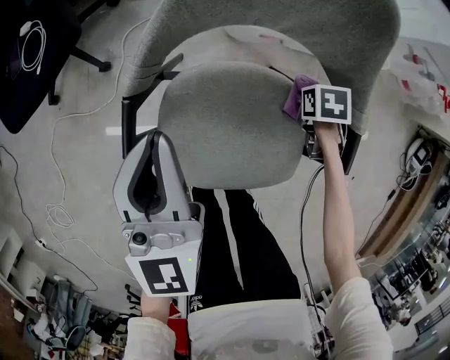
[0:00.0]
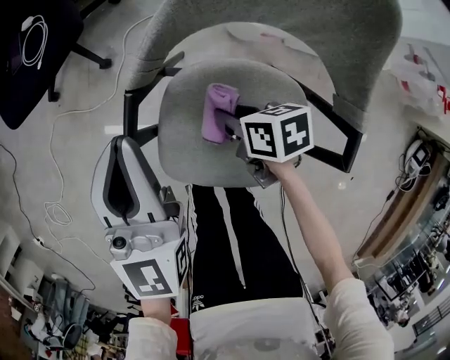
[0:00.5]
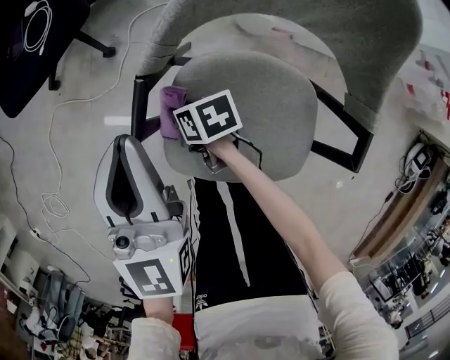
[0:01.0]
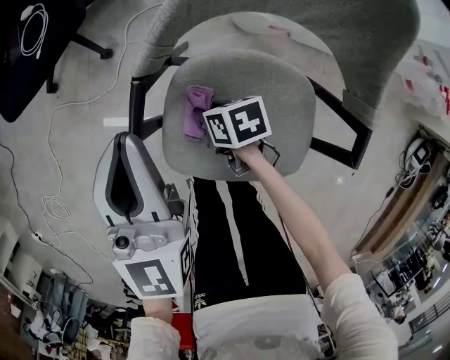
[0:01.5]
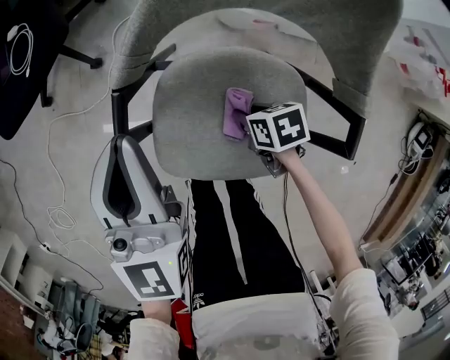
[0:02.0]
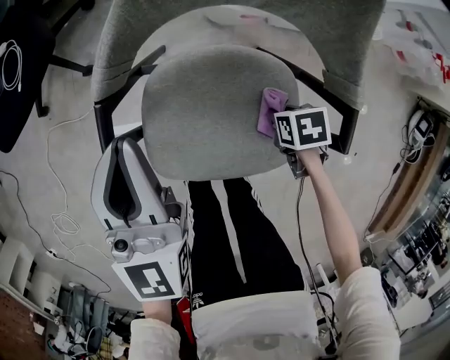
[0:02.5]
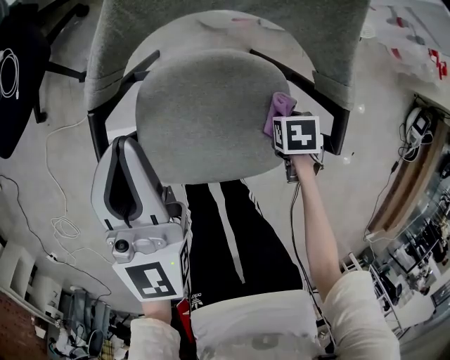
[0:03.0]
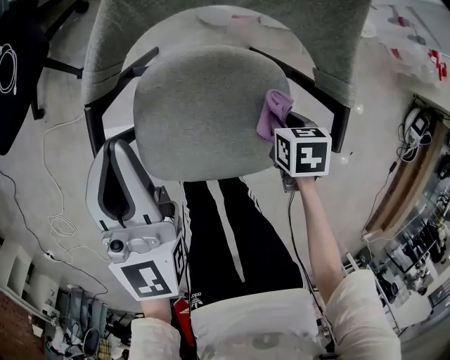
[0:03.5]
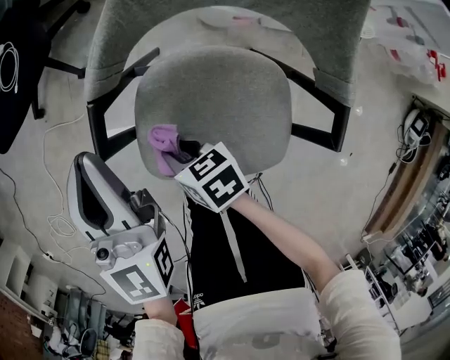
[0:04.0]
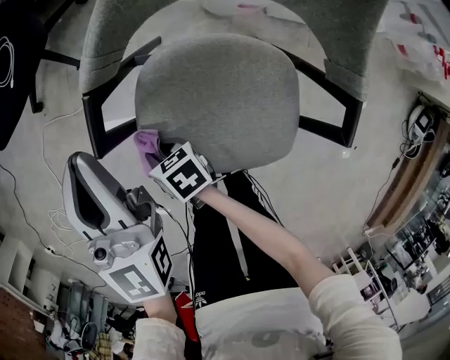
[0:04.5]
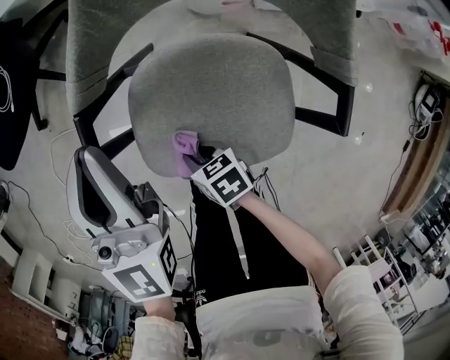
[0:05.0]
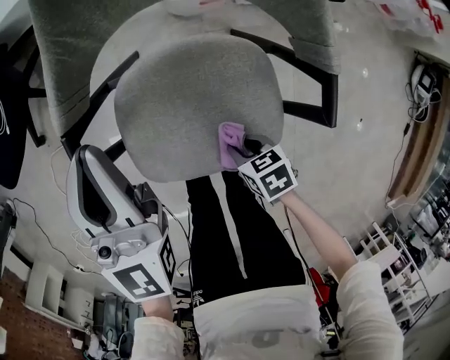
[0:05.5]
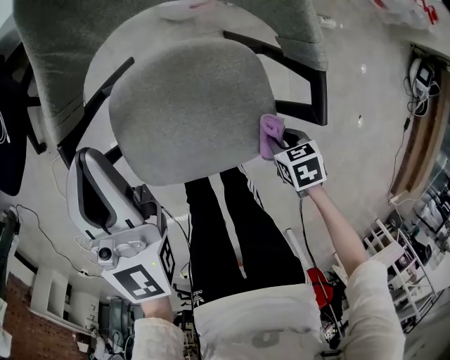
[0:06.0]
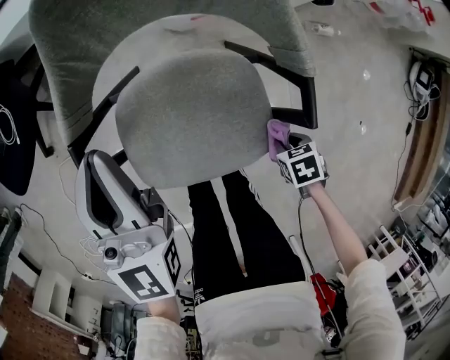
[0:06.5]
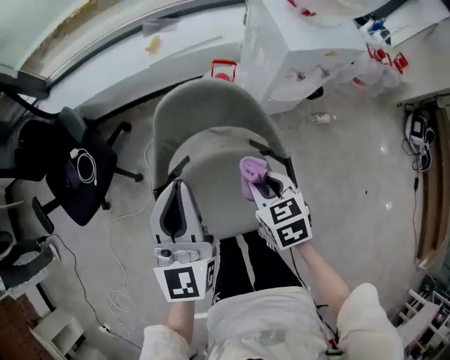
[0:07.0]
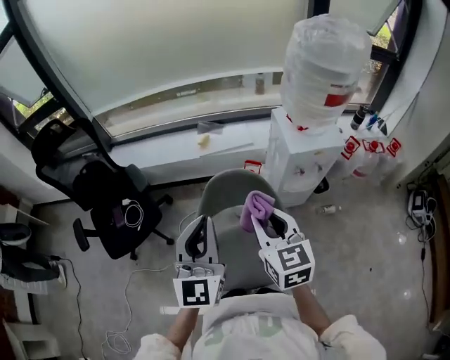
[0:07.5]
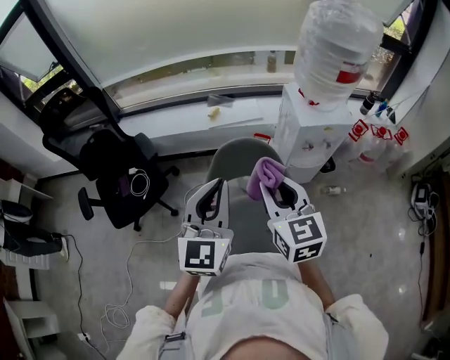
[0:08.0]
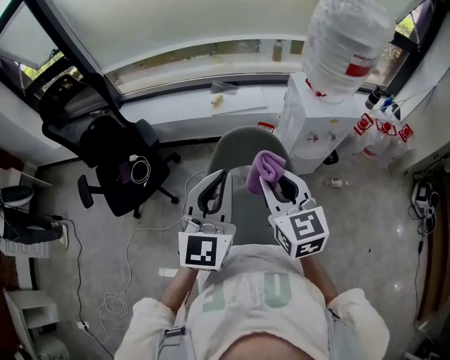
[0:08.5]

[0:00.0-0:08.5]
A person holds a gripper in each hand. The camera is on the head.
0:00.0 to 0:02.0: The right gripper swivels about 30 degrees.
0:02.0 to 0:04.0: The right gripper shifts by approximately 15 cm.
0:04.0 to 0:06.5: The left gripper moves some 10 cm. The right gripper moves about 35 cm, and tips its fingers downward by some 40 degrees.
0:06.5 to 0:08.5: The right gripper is displaced upward by roughly 60 cm, and angles its fingers upward, by some 70 degrees; the left gripper moves upward, approximately 35 cm.

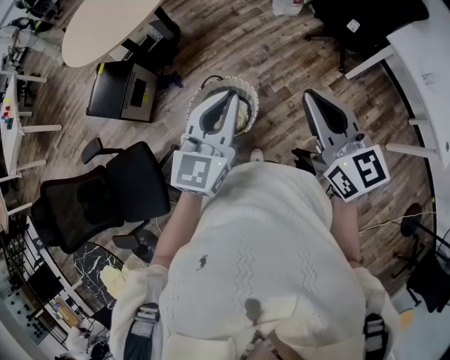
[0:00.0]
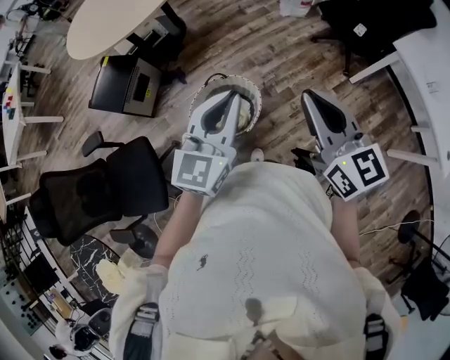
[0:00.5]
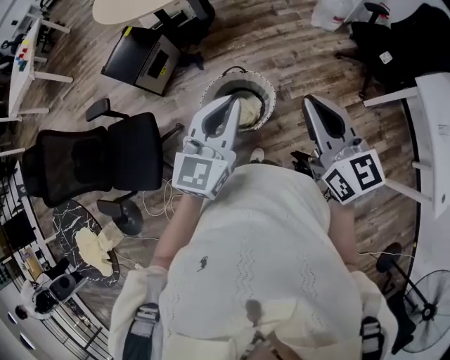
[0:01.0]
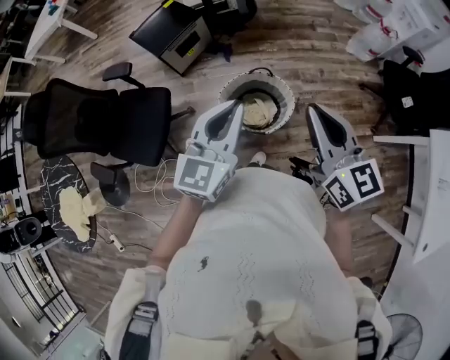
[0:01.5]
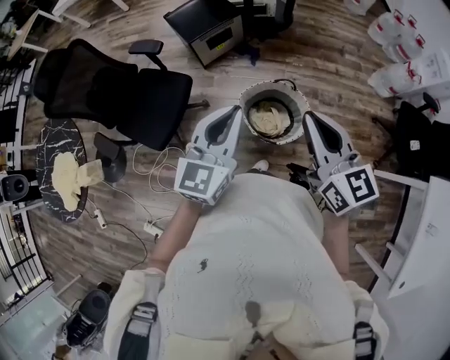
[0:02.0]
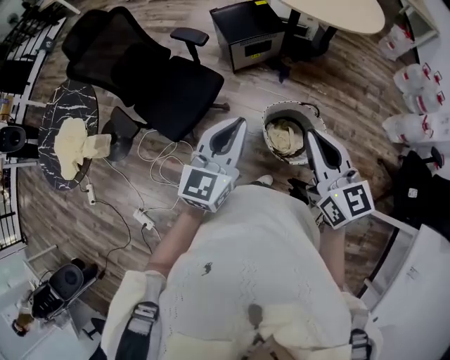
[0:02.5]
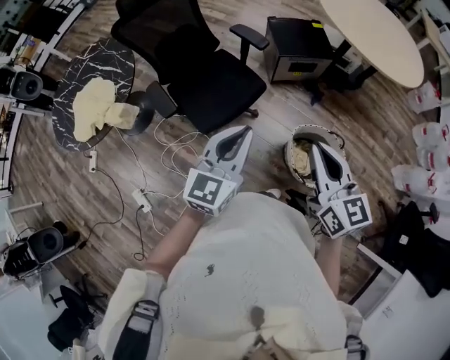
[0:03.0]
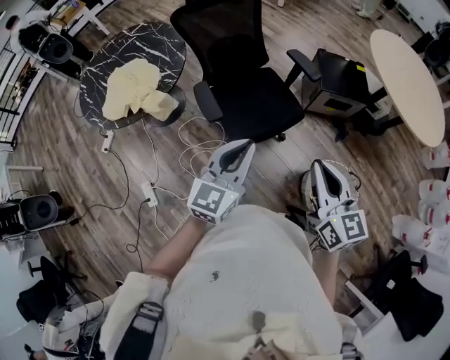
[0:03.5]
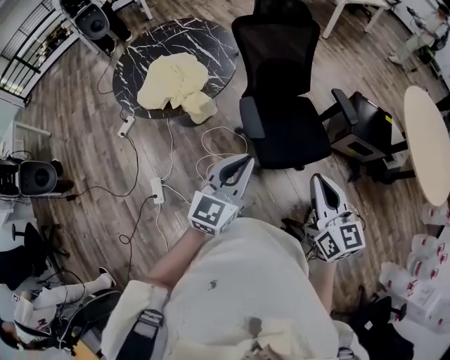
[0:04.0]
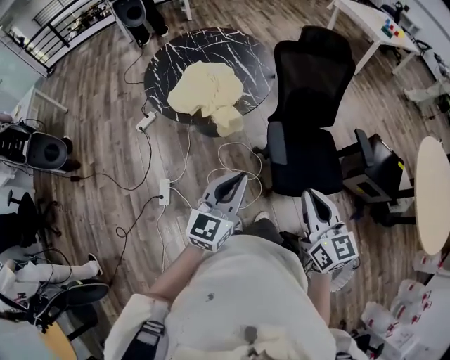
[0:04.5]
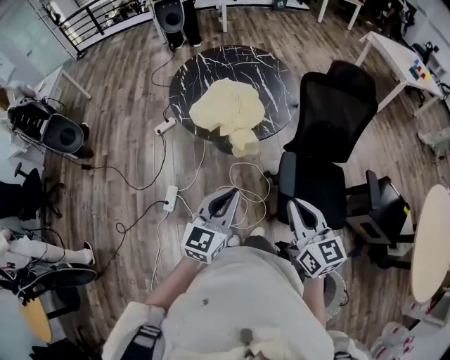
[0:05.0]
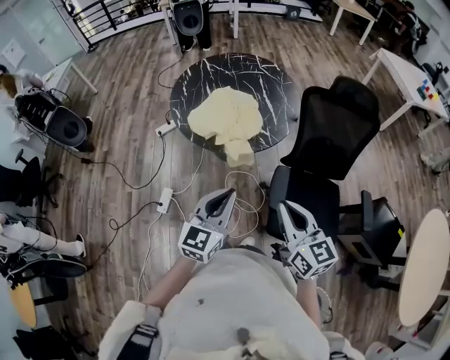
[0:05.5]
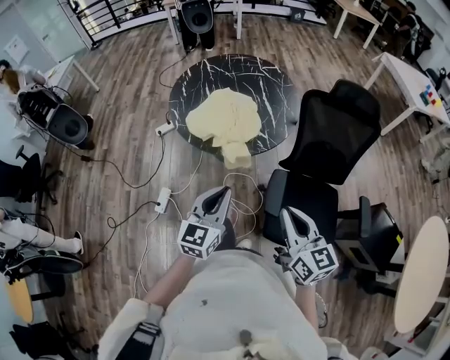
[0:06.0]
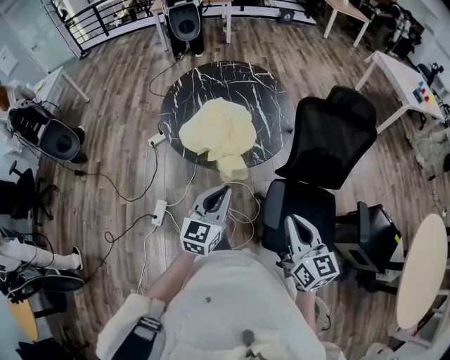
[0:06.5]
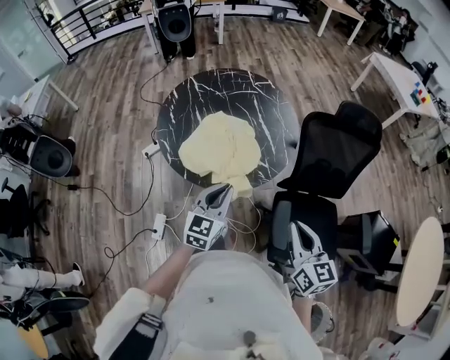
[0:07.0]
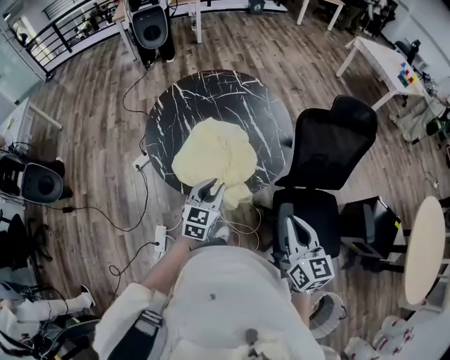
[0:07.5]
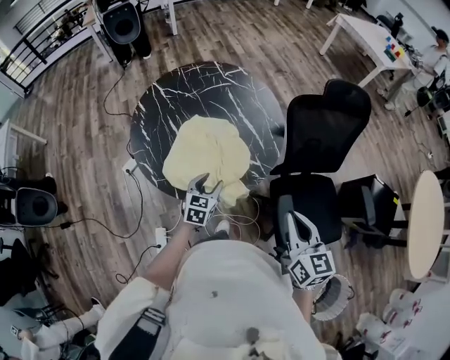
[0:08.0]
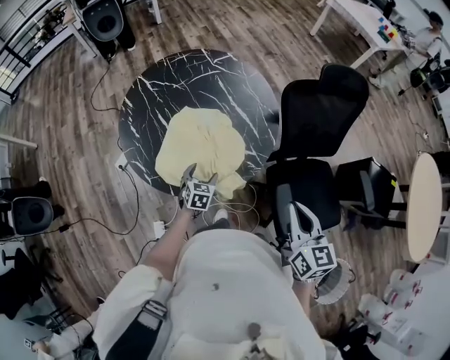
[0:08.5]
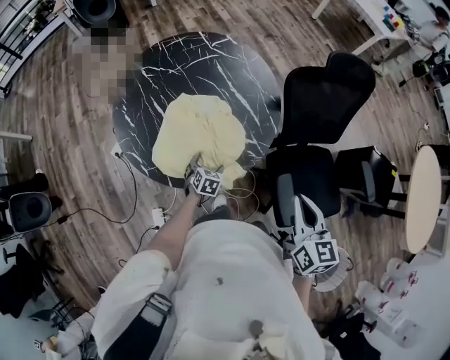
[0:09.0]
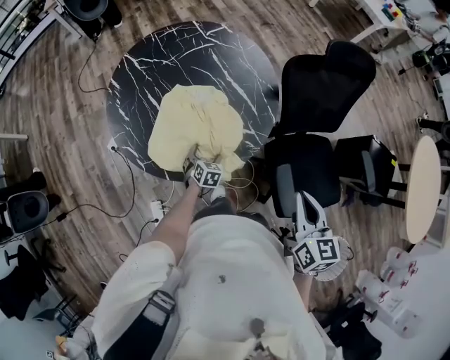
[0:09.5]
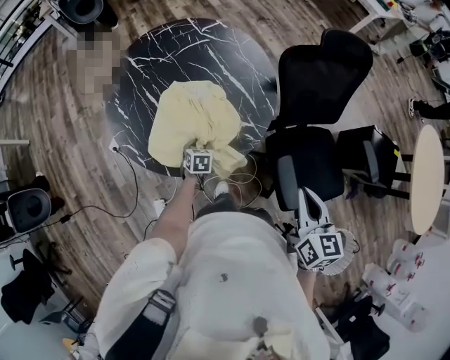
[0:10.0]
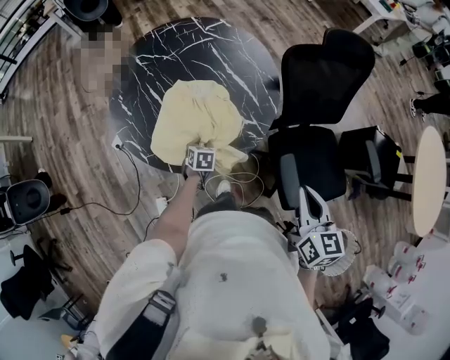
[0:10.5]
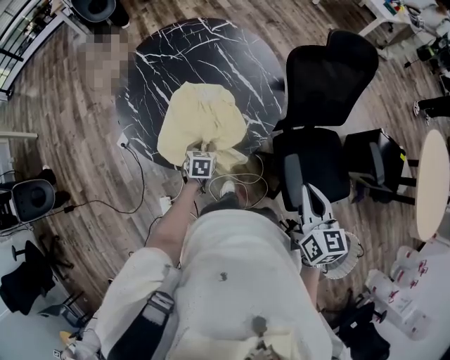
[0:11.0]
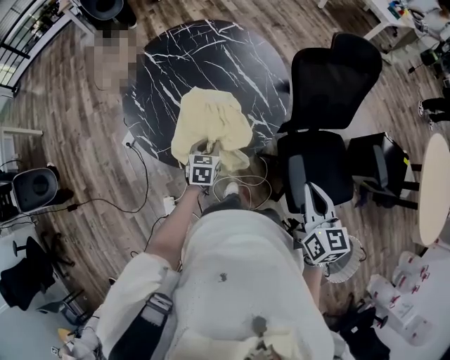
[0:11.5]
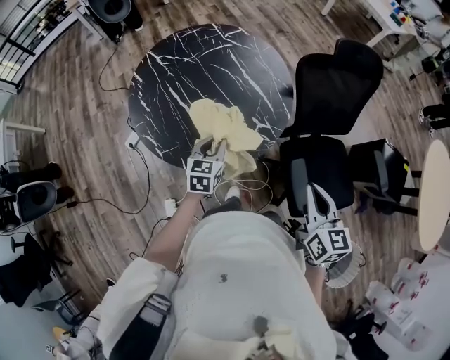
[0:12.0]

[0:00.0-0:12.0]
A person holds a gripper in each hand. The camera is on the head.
0:00.0 to 0:02.0: The right gripper changes place by some 25 cm, and swivels about 40 degrees. Meanwhile the left gripper changes place by some 25 cm, and turns by roughly 40 degrees.
0:02.0 to 0:04.0: Both grippers are carried some 70 cm. The left gripper rotates about 50 degrees. Meanwhile the right gripper turns by approximately 40 degrees.
0:04.0 to 0:06.0: The left gripper shifts by roughly 20 cm, and swivels about 40 degrees. The right gripper changes place by some 25 cm, and changes its angle by roughly 30 degrees.
0:06.0 to 0:08.0: The right gripper travels forward and to the left by about 30 cm, and rotates about 30 degrees. The left gripper is displaced forward and downward by about 50 cm, swivels some 30 degrees, and opens up.
0:08.0 to 0:10.0: The right gripper changes place by approximately 5 cm; the left gripper is displaced downward and forward by about 20 cm, swivels about 20 degrees, and opens, then closes again.
0:10.0 to 0:12.0: The left gripper is displaced upward by some 20 cm, and turns by roughly 30 degrees.

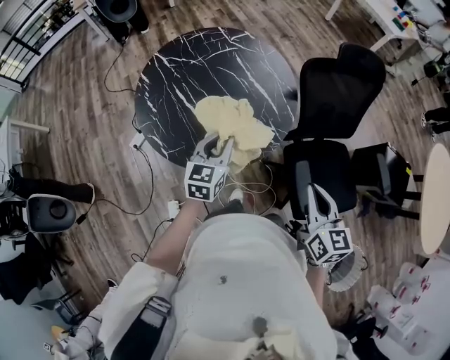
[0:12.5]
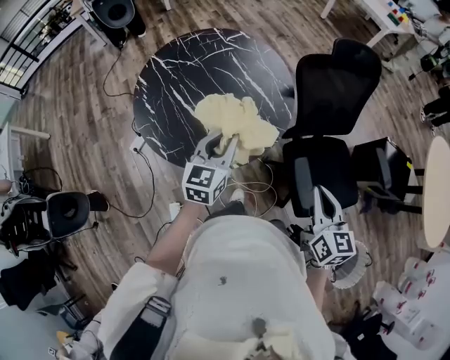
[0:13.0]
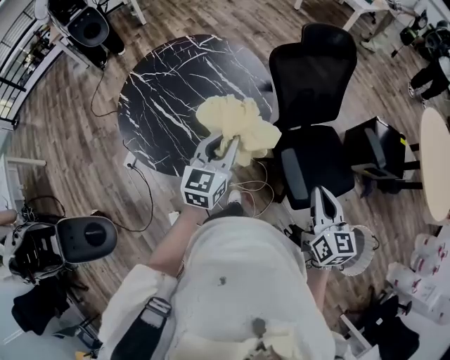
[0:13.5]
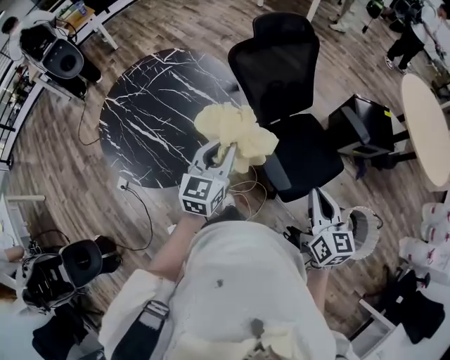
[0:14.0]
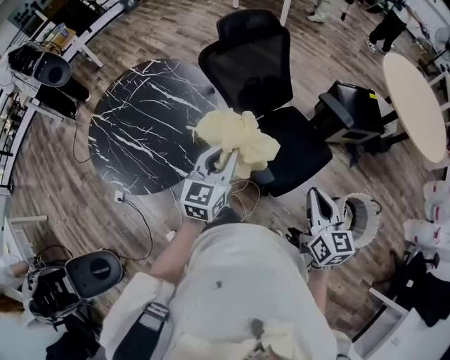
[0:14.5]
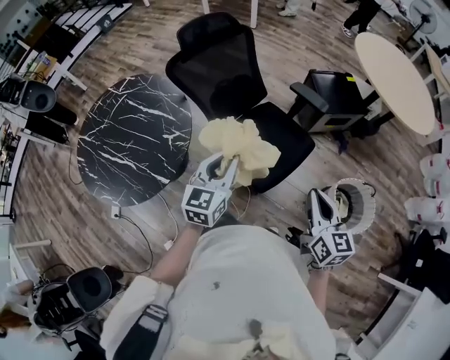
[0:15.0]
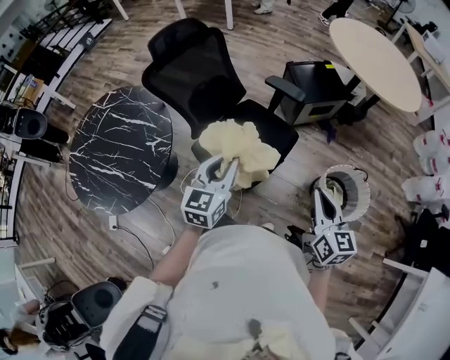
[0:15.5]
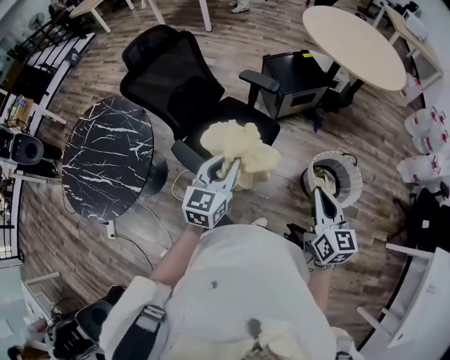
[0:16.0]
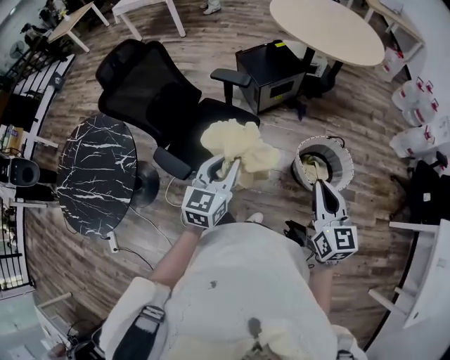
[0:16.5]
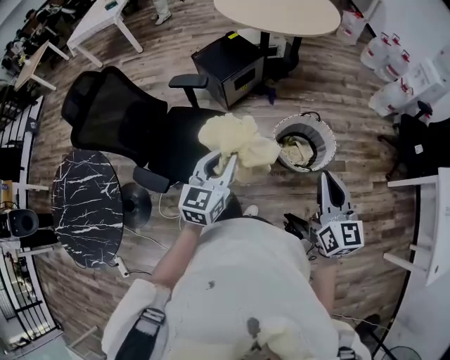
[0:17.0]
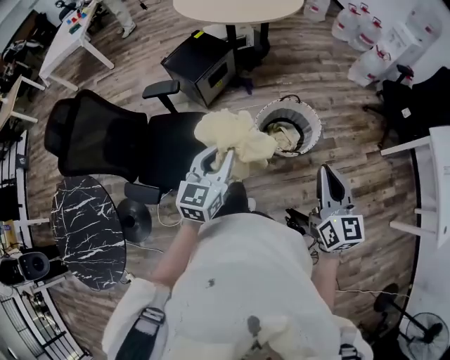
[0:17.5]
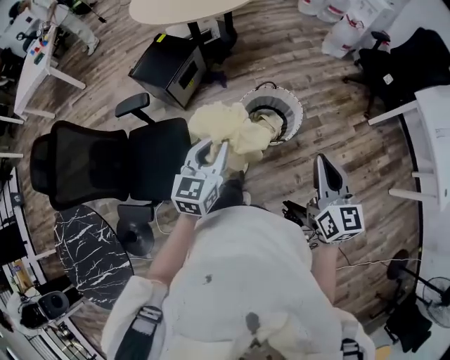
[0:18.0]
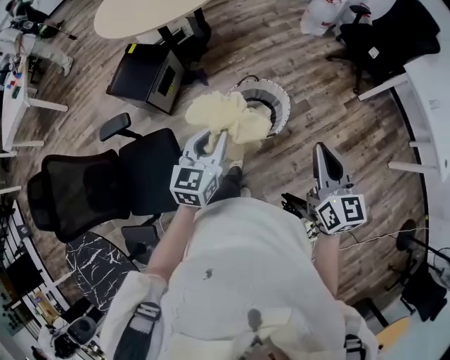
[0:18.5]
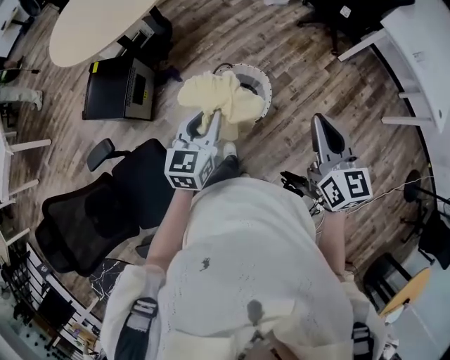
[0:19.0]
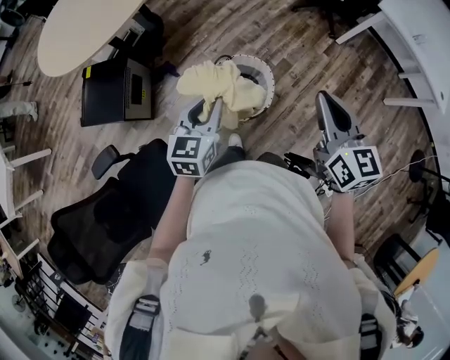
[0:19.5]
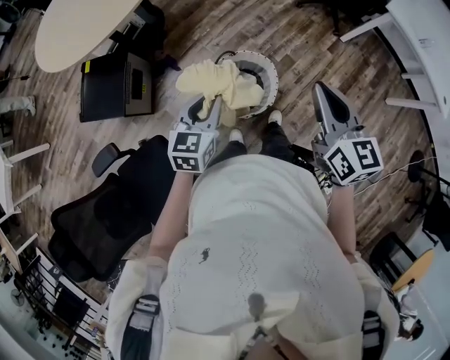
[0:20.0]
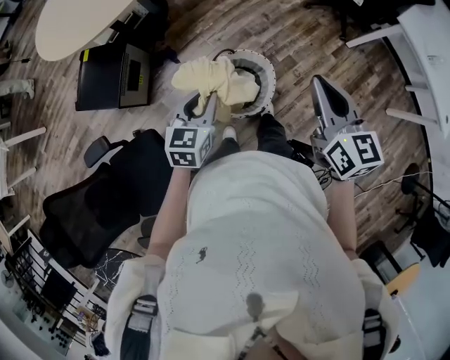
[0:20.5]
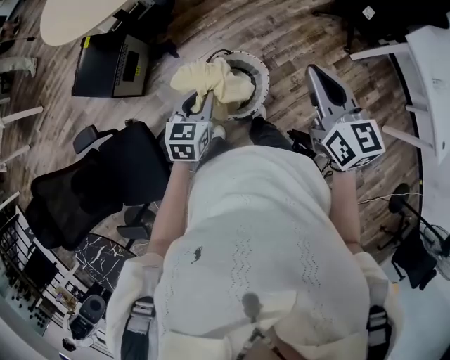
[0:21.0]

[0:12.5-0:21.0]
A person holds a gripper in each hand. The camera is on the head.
0:12.5 to 0:14.5: The right gripper moves approximately 35 cm, and turns by roughly 30 degrees; the left gripper changes place by some 35 cm, and changes its angle by approximately 30 degrees.
0:14.5 to 0:16.5: The pair of grippers is taken approximately 50 cm. The right gripper turns by approximately 30 degrees, while the left gripper changes its angle by approximately 30 degrees.
0:16.5 to 0:19.0: The right gripper moves approximately 40 cm, and rotates roughly 50 degrees. Meanwhile the left gripper shifts by about 50 cm, and swivels approximately 50 degrees.
0:19.0 to 0:21.0: The right gripper goes approximately 25 cm forward. Meanwhile the left gripper shifts roughly 20 cm forward and downward.
